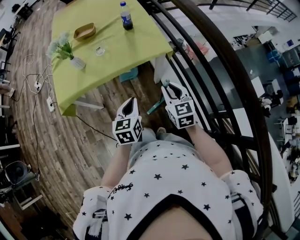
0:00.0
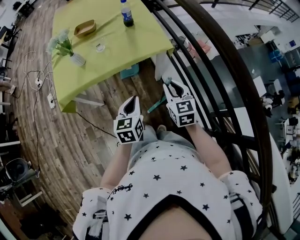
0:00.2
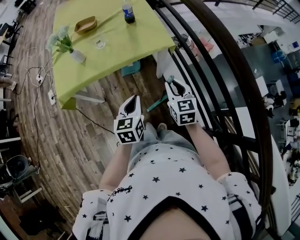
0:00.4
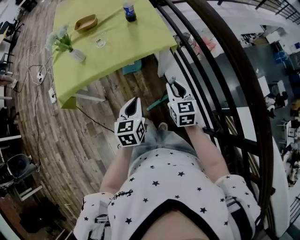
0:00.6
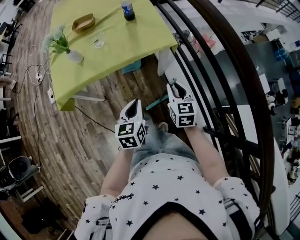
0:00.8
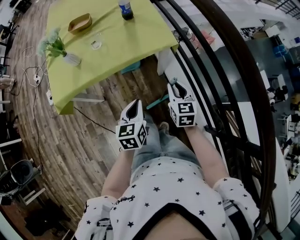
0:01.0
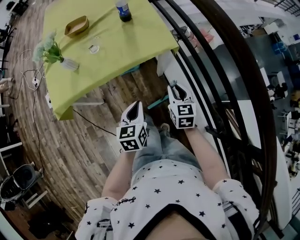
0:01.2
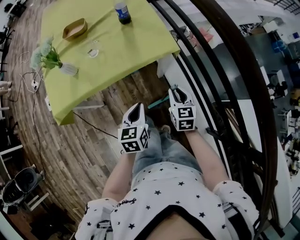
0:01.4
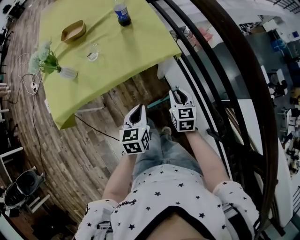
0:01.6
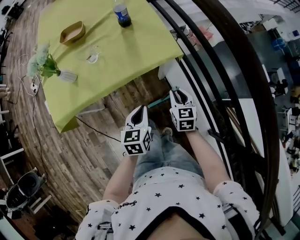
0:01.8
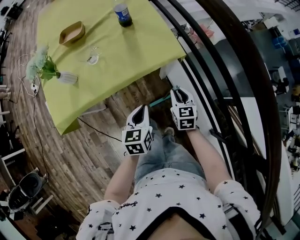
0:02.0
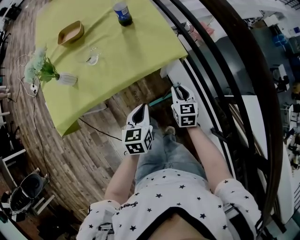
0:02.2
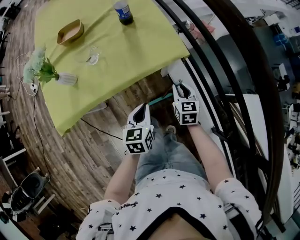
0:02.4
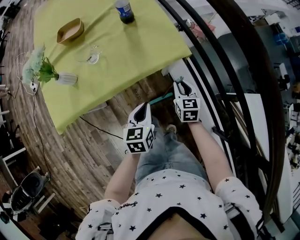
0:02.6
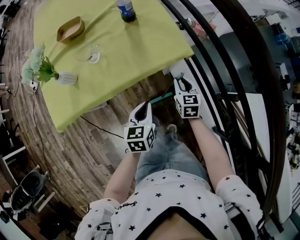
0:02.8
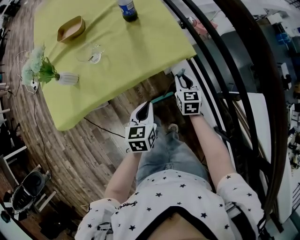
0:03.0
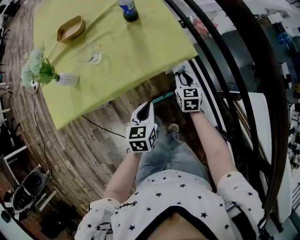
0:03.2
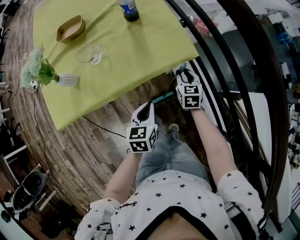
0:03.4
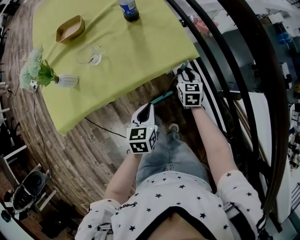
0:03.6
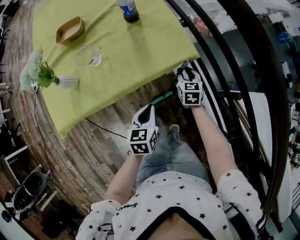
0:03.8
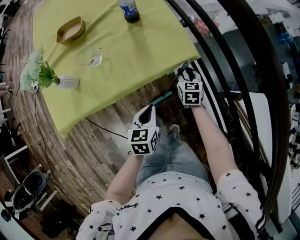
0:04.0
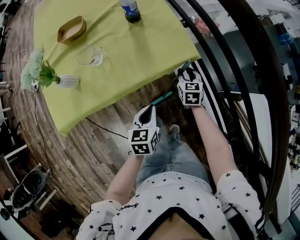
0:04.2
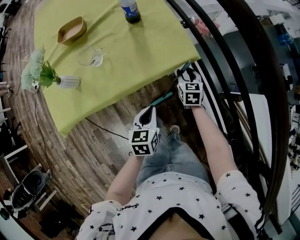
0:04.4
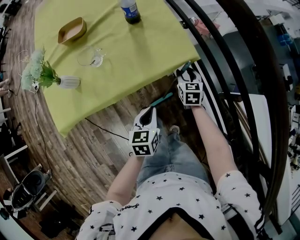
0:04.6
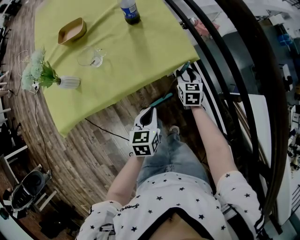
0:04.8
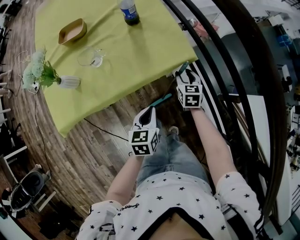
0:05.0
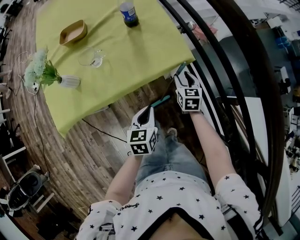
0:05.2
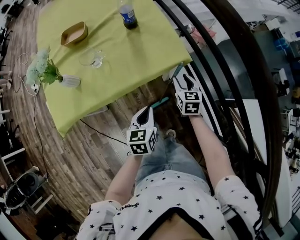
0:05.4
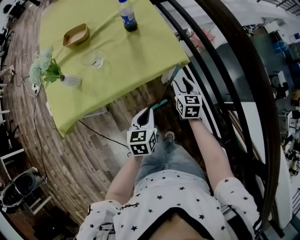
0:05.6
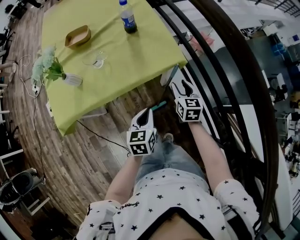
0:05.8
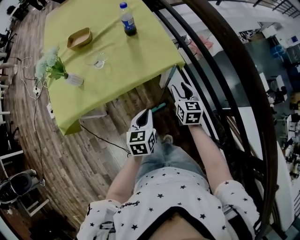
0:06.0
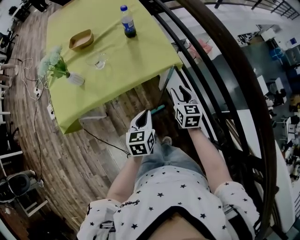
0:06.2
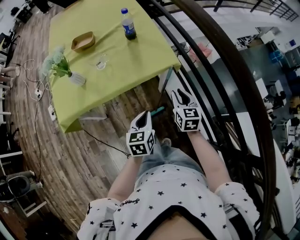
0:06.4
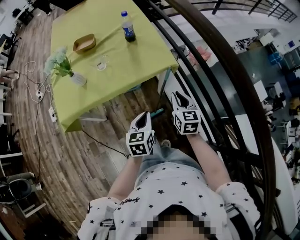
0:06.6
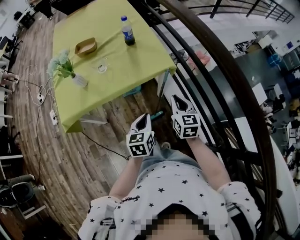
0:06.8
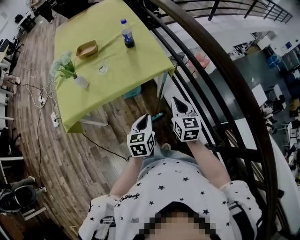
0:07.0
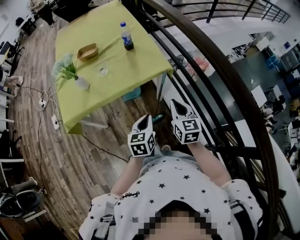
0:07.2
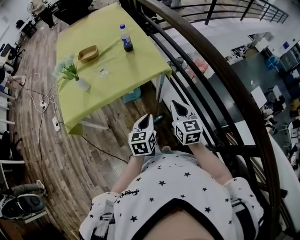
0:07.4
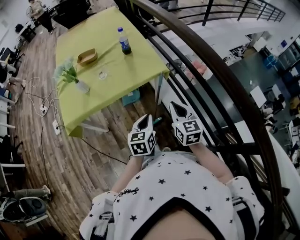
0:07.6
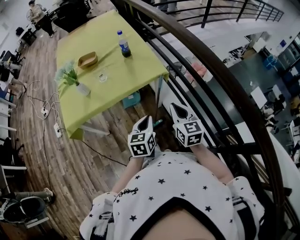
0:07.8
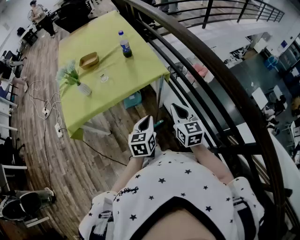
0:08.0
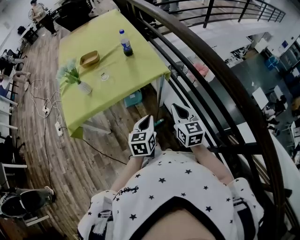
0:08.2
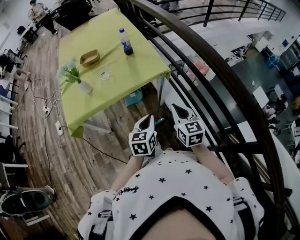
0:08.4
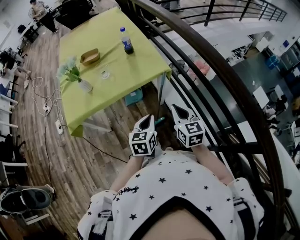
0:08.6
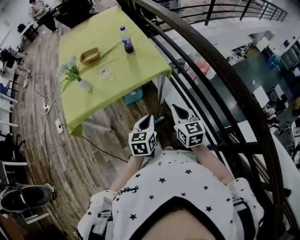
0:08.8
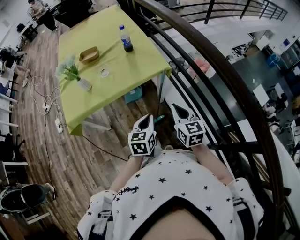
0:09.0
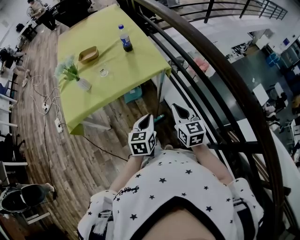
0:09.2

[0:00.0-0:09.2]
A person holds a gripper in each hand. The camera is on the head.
0:00.0 to 0:01.6: The left gripper heads downward and forward, covering some 10 cm. The right gripper heads downward and forward, covering some 15 cm.
0:01.6 to 0:03.0: The left gripper shifts some 5 cm forward. The right gripper shifts some 10 cm forward and downward.
0:03.0 to 0:04.6: The right gripper moves forward, approximately 5 cm.
0:04.6 to 0:06.2: The left gripper travels upward by about 5 cm, while the right gripper heads upward and backward, covering about 15 cm.
0:06.2 to 0:07.6: The right gripper shifts roughly 20 cm backward and upward, and closes. Meanwhile the left gripper heads backward and upward, covering approximately 10 cm.
0:07.6 to 0:09.2: There are only small adjustments of the grippers.

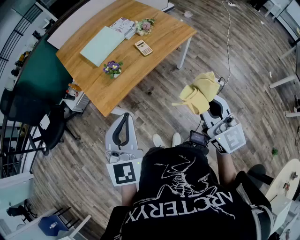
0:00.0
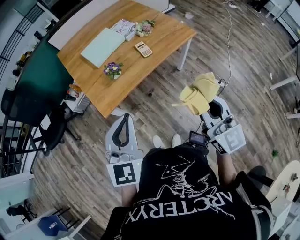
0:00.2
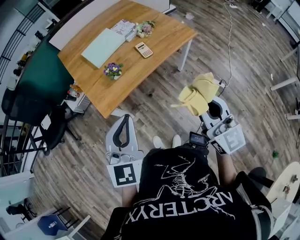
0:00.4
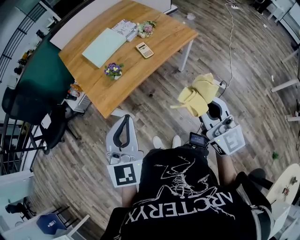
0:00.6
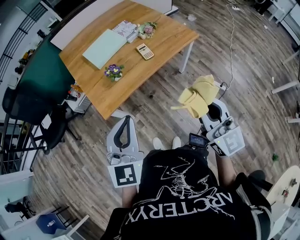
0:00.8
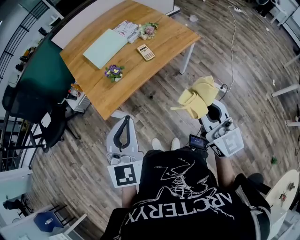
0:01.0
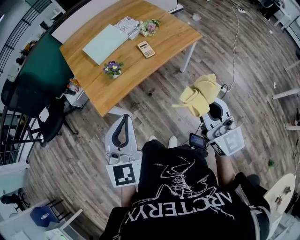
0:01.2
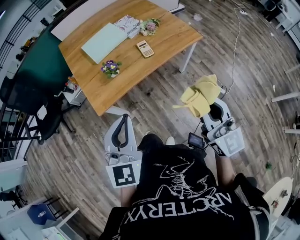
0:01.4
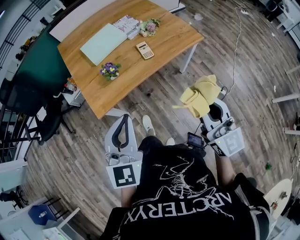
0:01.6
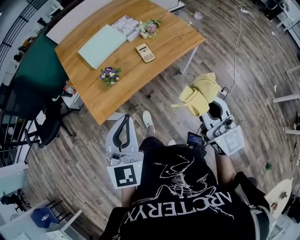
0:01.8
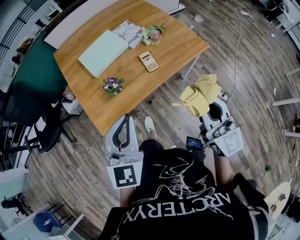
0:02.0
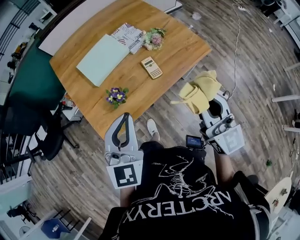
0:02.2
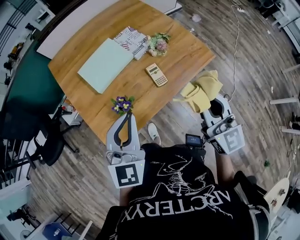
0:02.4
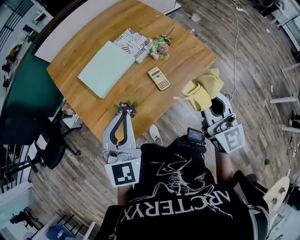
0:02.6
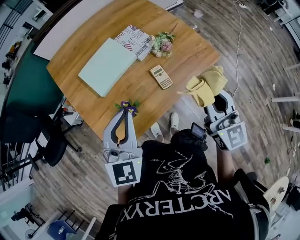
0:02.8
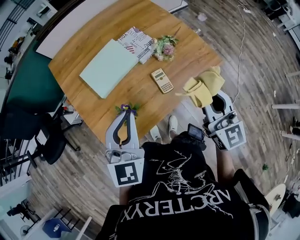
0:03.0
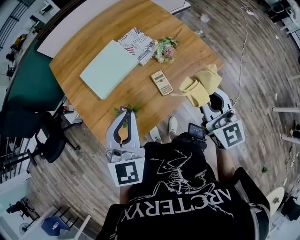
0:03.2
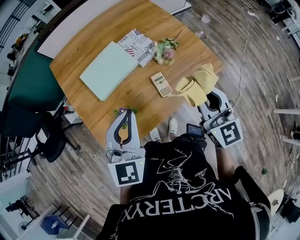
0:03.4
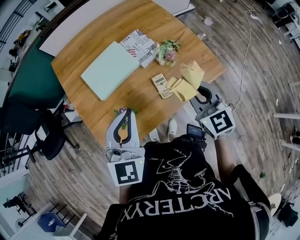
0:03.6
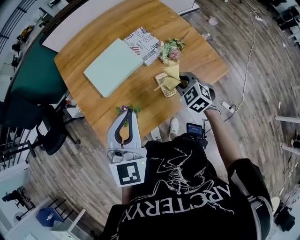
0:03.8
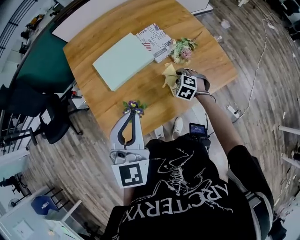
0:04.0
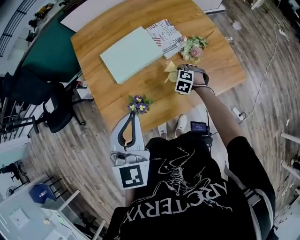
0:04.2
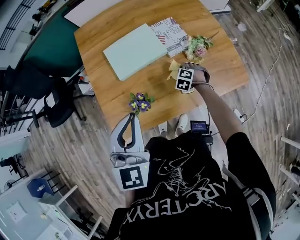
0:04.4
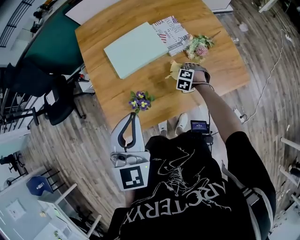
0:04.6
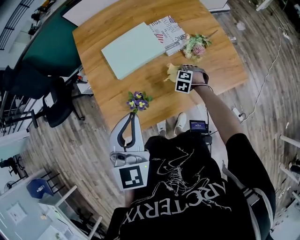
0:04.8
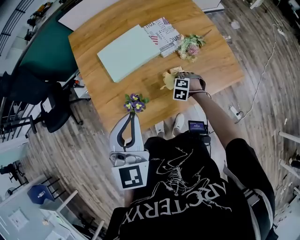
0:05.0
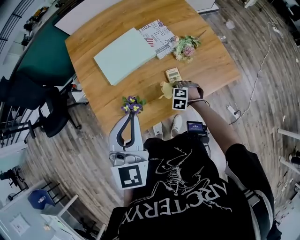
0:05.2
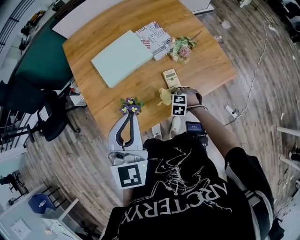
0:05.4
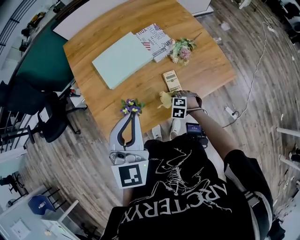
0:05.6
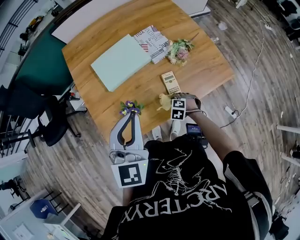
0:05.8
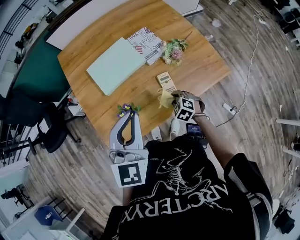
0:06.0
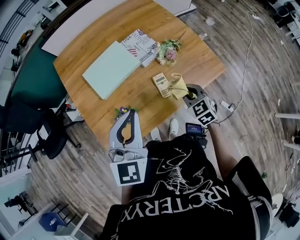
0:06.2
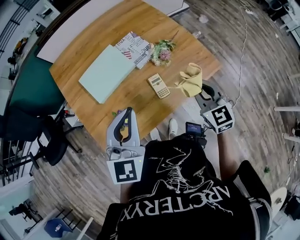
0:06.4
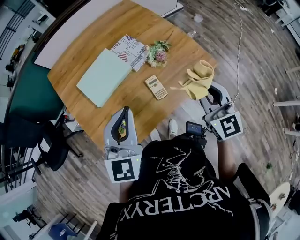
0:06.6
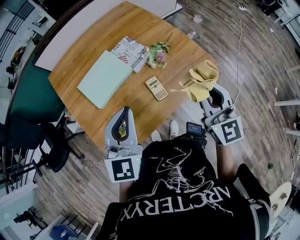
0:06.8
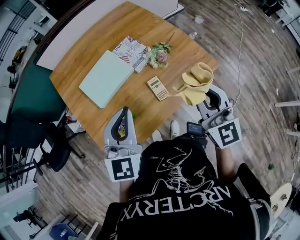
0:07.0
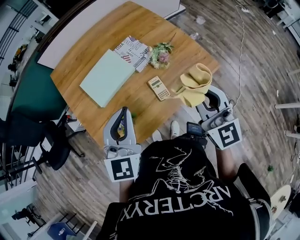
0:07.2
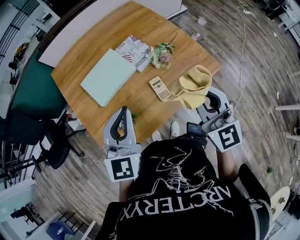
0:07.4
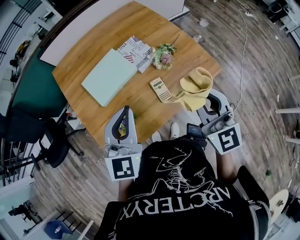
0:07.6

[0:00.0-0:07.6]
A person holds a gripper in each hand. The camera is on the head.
0:00.0 to 0:01.6: The right gripper heads forward, covering roughly 5 cm. Meanwhile the left gripper ends up some 5 cm from where it was.
0:01.6 to 0:03.0: Both grippers move forward, approximately 35 cm.
0:03.0 to 0:04.6: The right gripper heads downward and forward, covering some 50 cm, and tilts its fingers approximately 70 degrees downward.
0:04.6 to 0:06.0: The right gripper goes about 15 cm backward and upward, and swivels roughly 20 degrees.
0:06.0 to 0:07.6: The right gripper travels upward by some 35 cm, and tilts its fingers roughly 60 degrees upward.

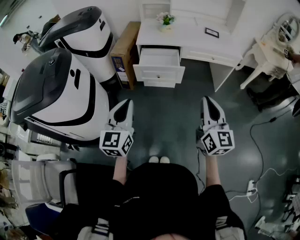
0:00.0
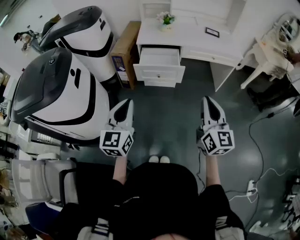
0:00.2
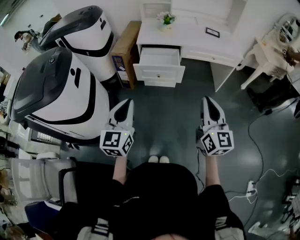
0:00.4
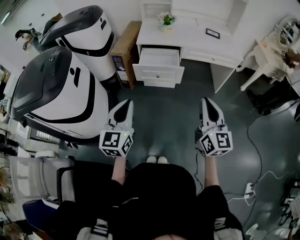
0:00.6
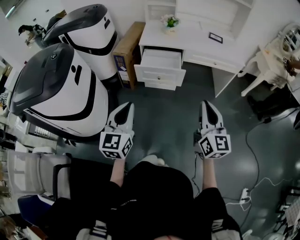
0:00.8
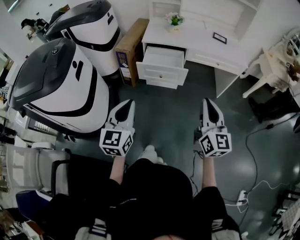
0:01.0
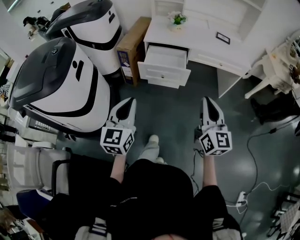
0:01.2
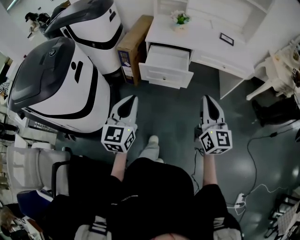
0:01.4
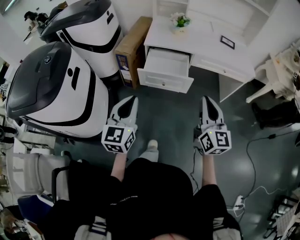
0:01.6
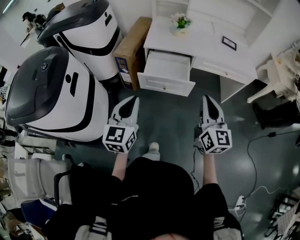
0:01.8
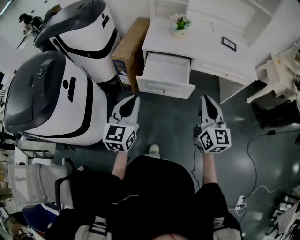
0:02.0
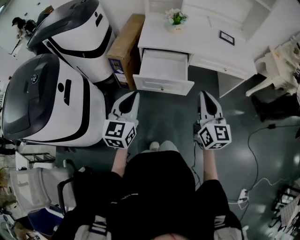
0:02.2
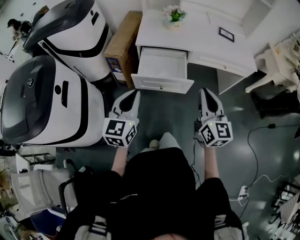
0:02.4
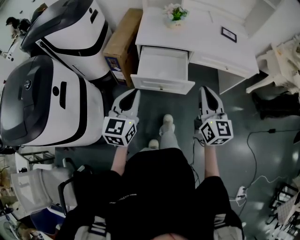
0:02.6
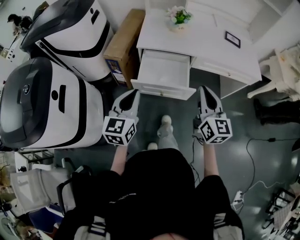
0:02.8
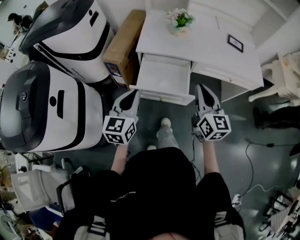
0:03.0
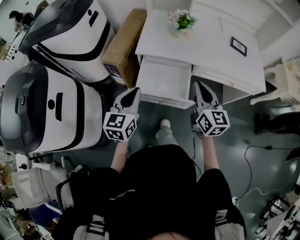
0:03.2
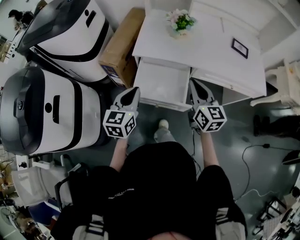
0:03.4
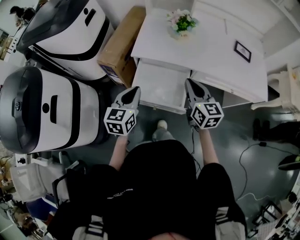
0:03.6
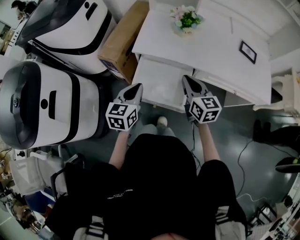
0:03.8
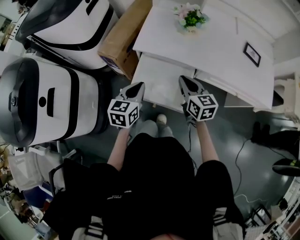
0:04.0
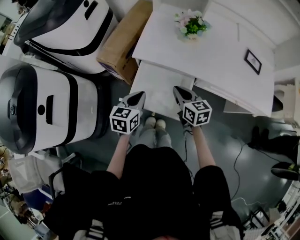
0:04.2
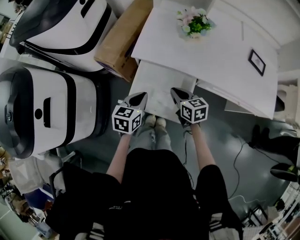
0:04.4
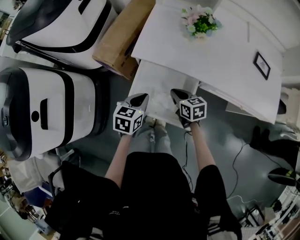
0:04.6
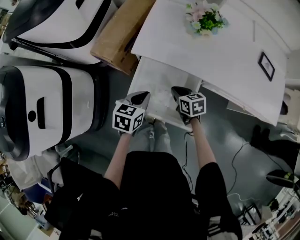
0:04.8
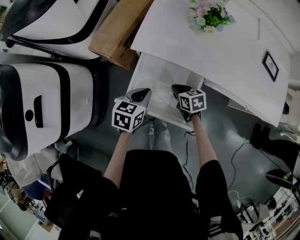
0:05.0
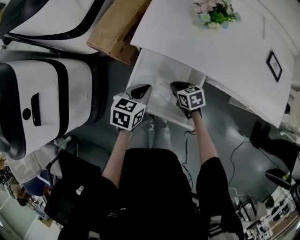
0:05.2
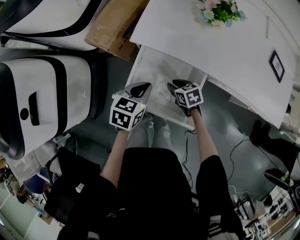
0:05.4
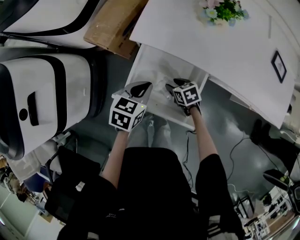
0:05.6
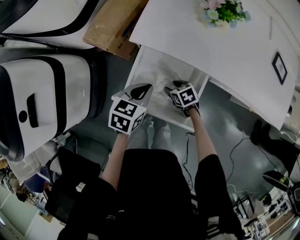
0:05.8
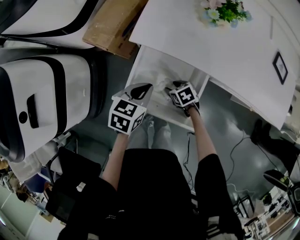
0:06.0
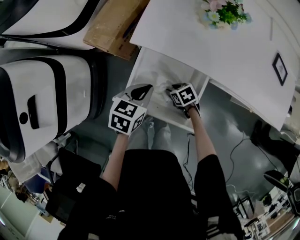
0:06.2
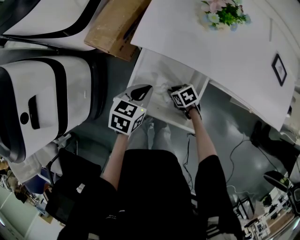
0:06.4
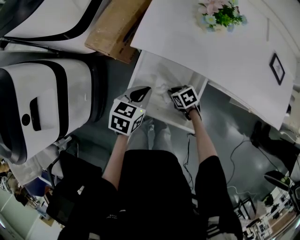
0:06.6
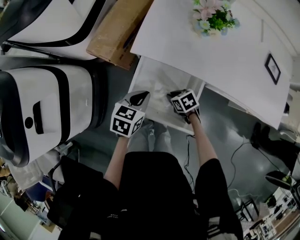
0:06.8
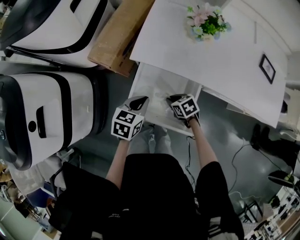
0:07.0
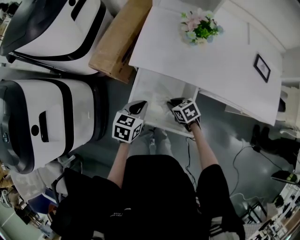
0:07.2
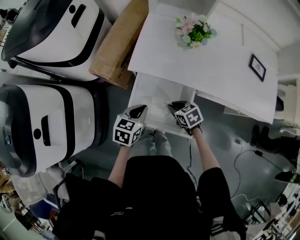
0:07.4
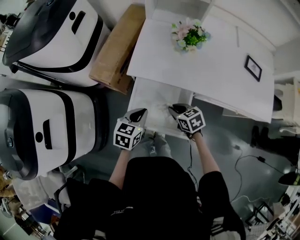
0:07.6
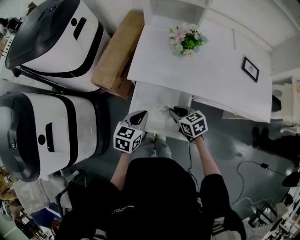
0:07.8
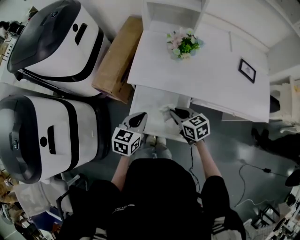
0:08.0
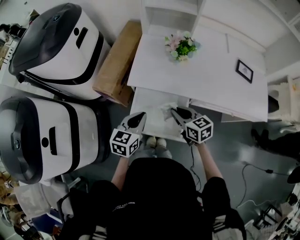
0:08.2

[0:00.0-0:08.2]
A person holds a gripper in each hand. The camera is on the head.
0:00.0 to 0:01.6: Both grippers move forward, roughly 15 cm.
0:01.6 to 0:03.2: Both grippers travel together forward, roughly 30 cm.
0:03.2 to 0:05.0: The right gripper is displaced downward and forward by some 35 cm, and angles its fingers downward, by approximately 40 degrees, while the left gripper heads downward and forward, covering roughly 25 cm, and rotates roughly 30 degrees.
0:05.0 to 0:06.6: The right gripper goes some 5 cm downward, rotates approximately 20 degrees, and opens, then closes again.
0:06.6 to 0:08.2: The left gripper heads upward, covering approximately 10 cm. The right gripper travels upward by roughly 25 cm, and tips its fingers upward by approximately 30 degrees.
